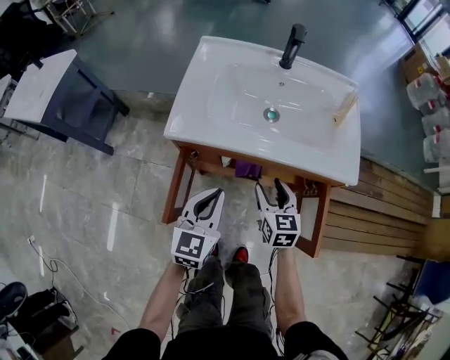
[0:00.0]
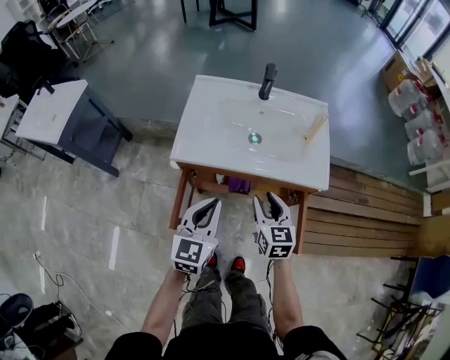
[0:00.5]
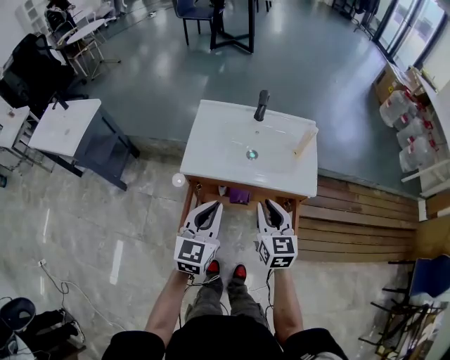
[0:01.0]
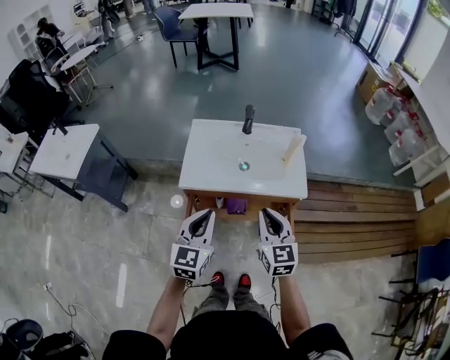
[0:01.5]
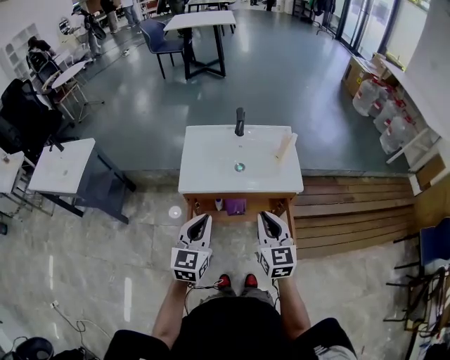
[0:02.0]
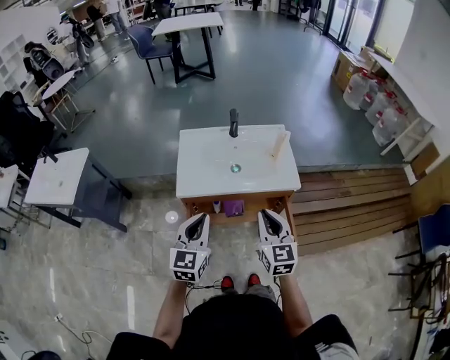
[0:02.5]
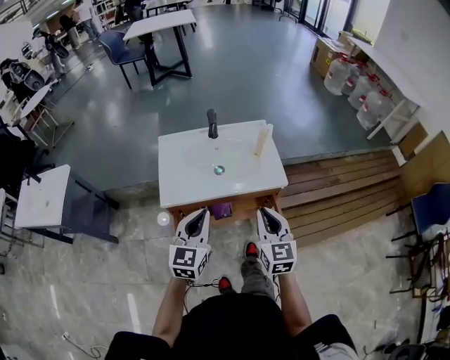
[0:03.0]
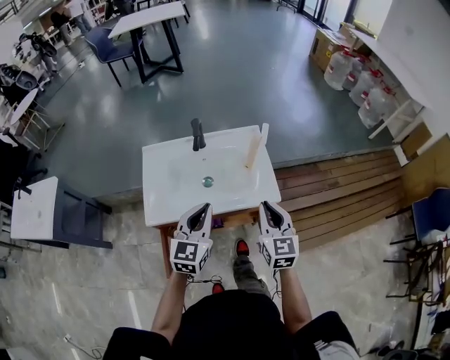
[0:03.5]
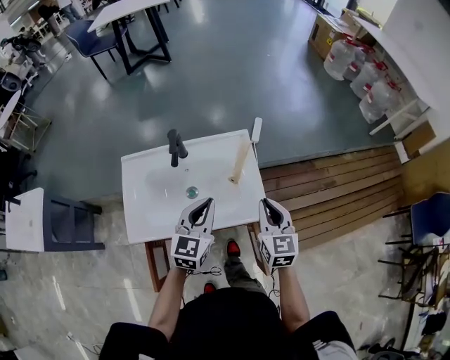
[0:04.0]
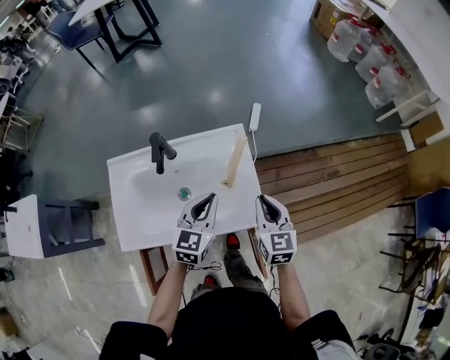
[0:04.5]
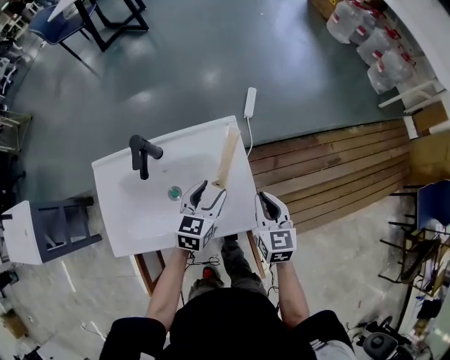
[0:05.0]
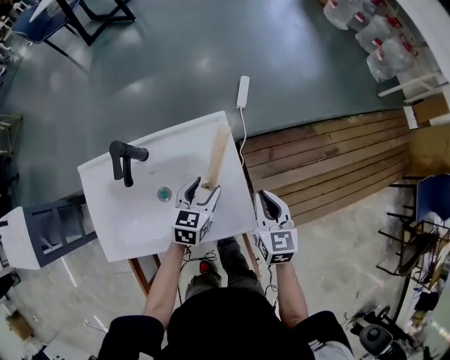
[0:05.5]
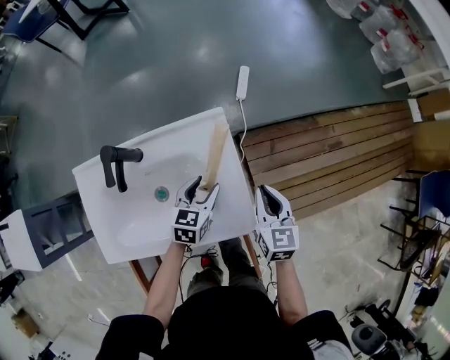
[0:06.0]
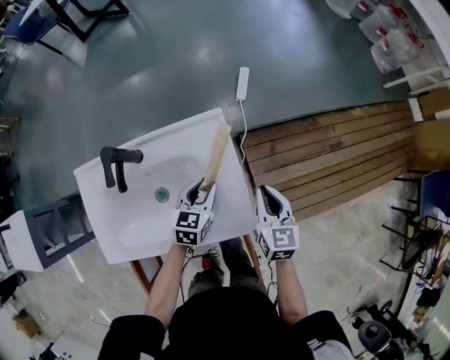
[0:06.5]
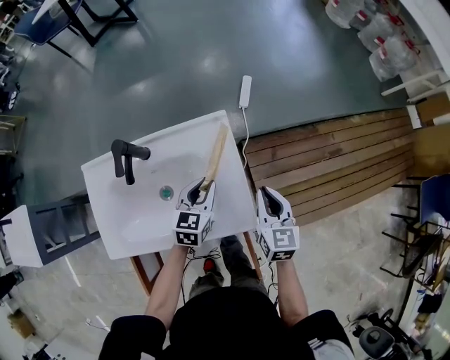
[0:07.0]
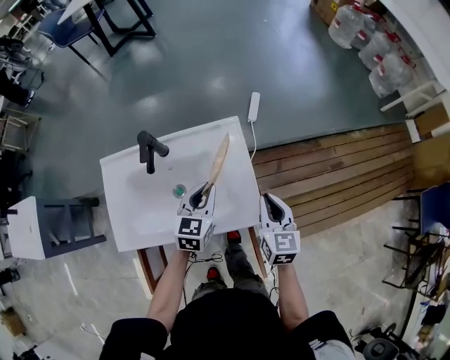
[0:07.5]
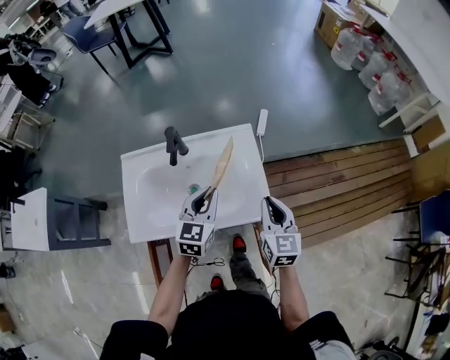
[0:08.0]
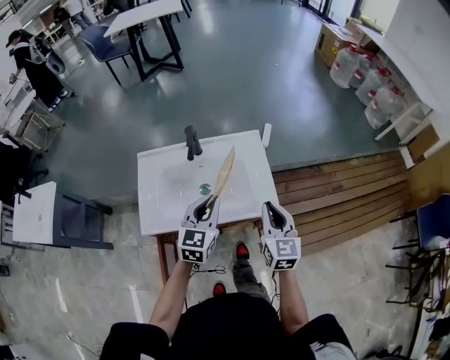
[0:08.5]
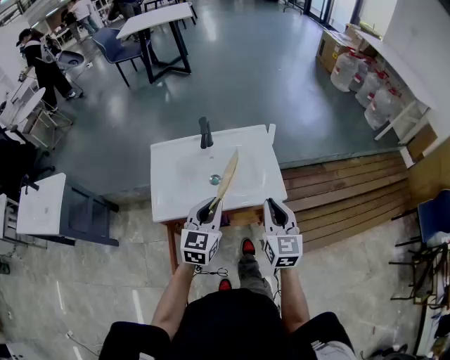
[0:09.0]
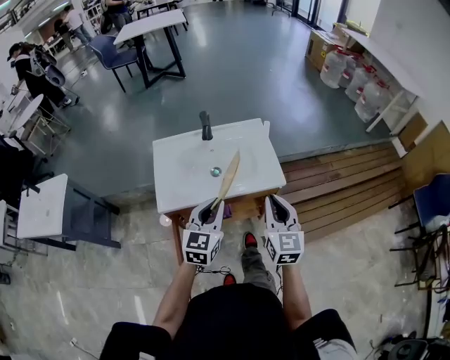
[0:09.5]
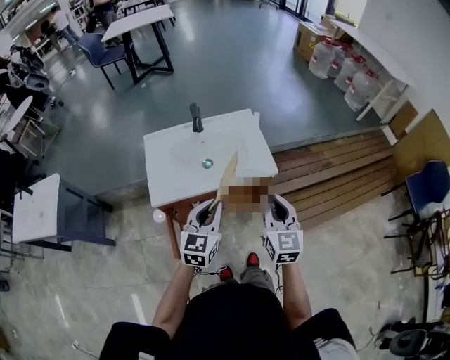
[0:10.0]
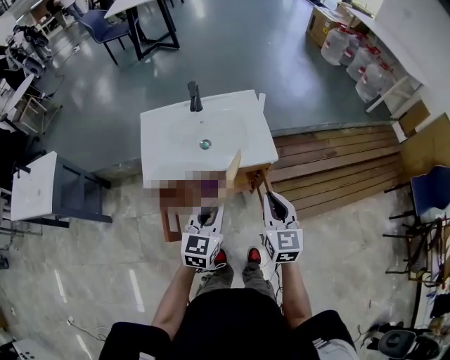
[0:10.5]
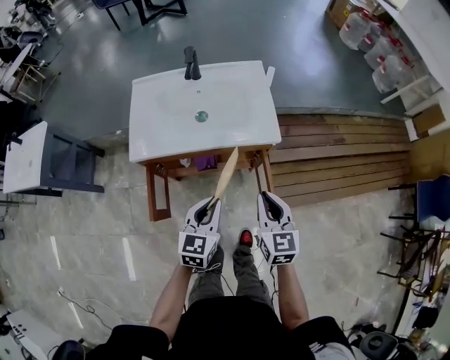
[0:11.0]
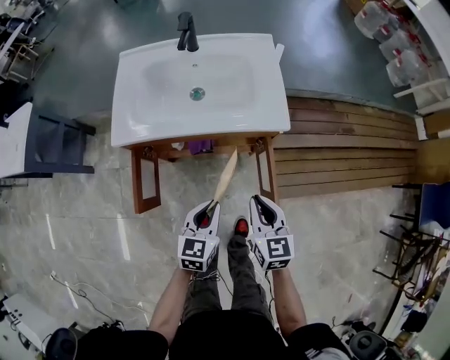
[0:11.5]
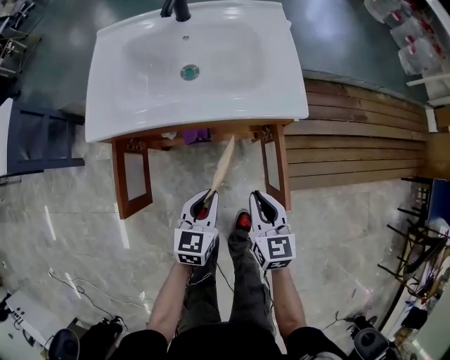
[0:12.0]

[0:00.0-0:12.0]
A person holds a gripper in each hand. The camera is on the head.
0:00.0 to 0:02.0: The left gripper moves upward, approximately 25 cm. The right gripper moves upward and backward, approximately 35 cm, and closes up.
0:02.0 to 0:04.0: Both grippers move forward and to the right, approximately 35 cm.
0:04.0 to 0:06.0: Both grippers move downward and forward, approximately 25 cm. The left gripper swivels approximately 30 degrees, and opens up.
0:06.0 to 0:08.0: Both grippers travel together upward and backward, approximately 20 cm. The left gripper changes its angle by some 20 degrees, and closes its fingers.
0:08.0 to 0:10.0: The right gripper shifts some 25 cm backward and upward. Meanwhile the left gripper moves backward, about 25 cm.
0:10.0 to 0:12.0: The grippers both shift downward by some 30 cm. The right gripper turns by some 30 degrees; the left gripper swivels roughly 20 degrees.

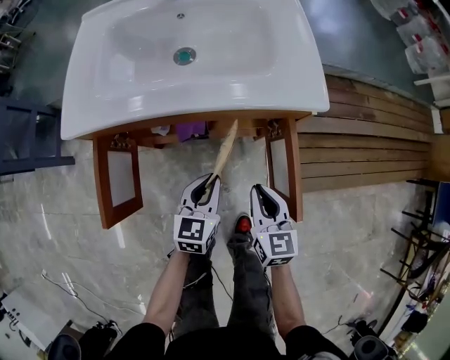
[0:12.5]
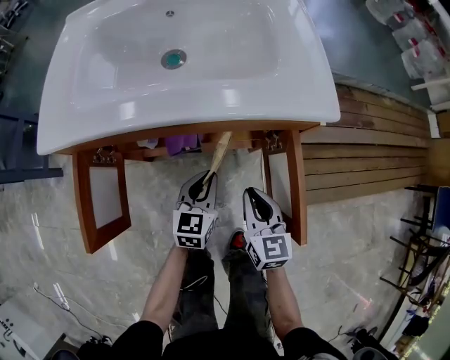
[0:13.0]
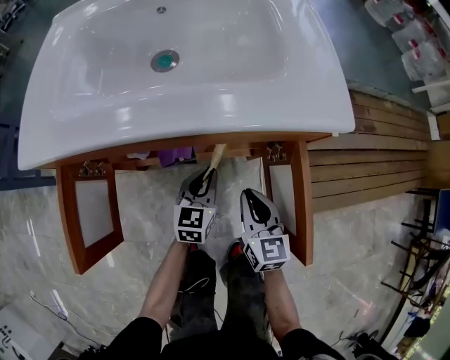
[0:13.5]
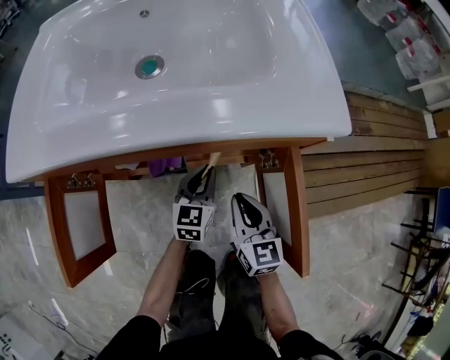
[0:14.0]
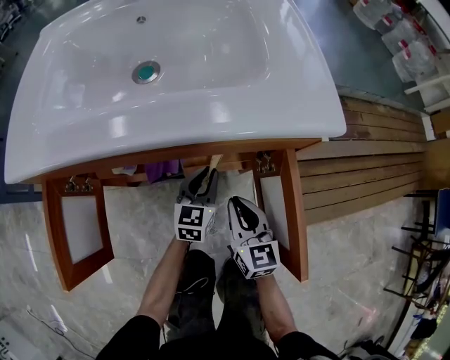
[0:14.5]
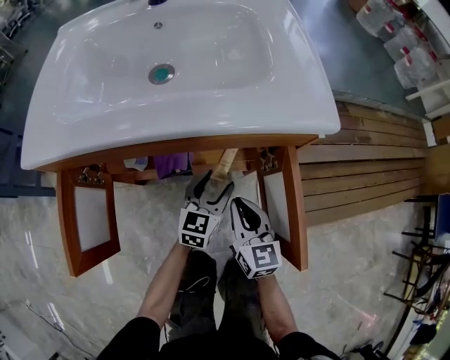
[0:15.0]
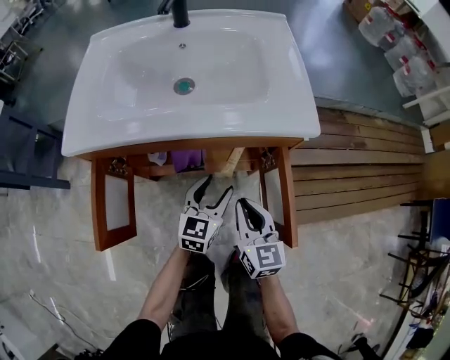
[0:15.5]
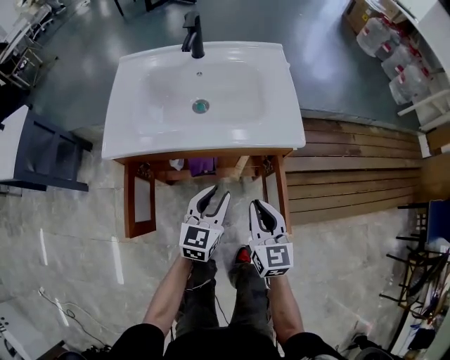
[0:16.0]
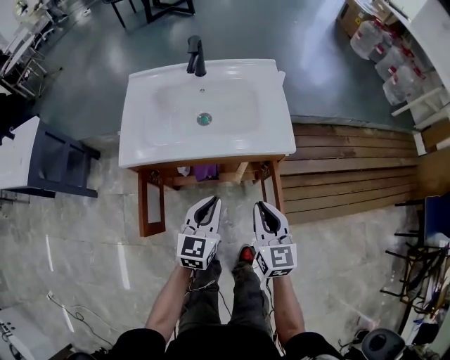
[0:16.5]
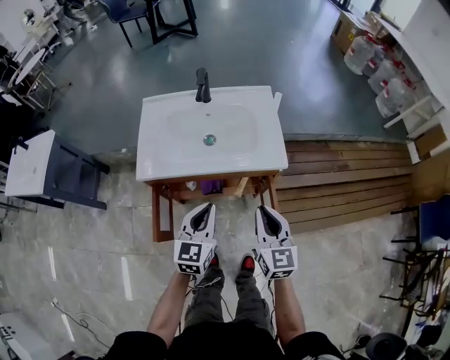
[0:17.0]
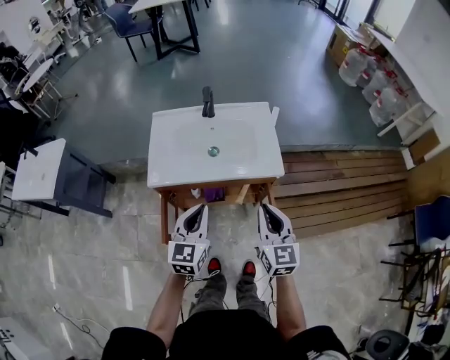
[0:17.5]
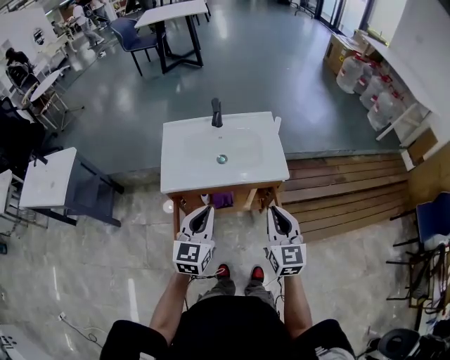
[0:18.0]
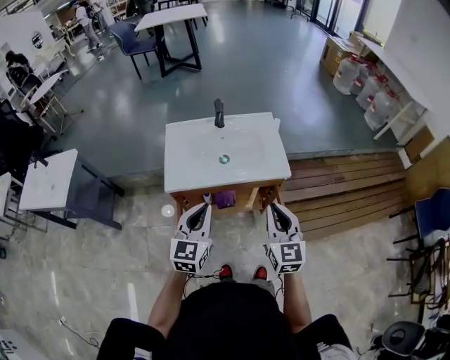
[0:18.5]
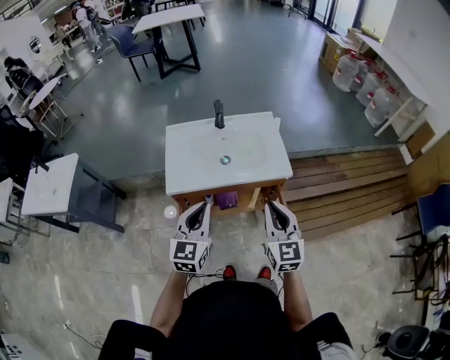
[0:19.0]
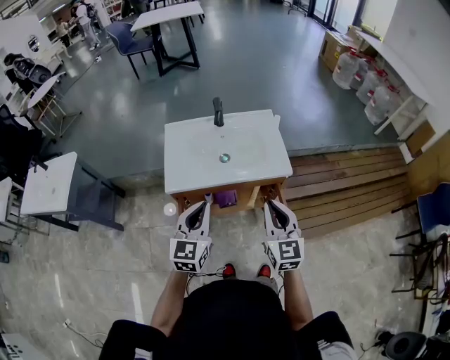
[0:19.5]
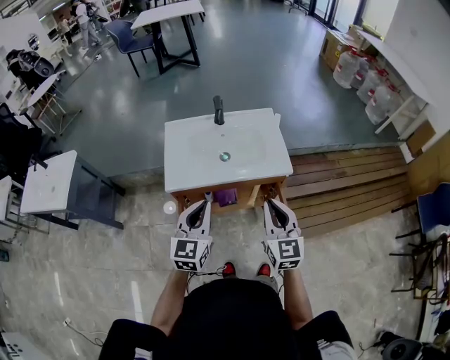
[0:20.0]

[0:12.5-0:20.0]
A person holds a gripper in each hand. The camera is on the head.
0:12.5 to 0:14.5: The grippers both shift downward and forward by about 20 cm.
0:14.5 to 0:16.5: The grippers both shift upward by some 35 cm. The left gripper opens, then closes again.
0:16.5 to 0:18.0: Both grippers move upward, about 20 cm.
0:18.0 to 0:20.0: The grippers stay close to where they were, moving slightly.

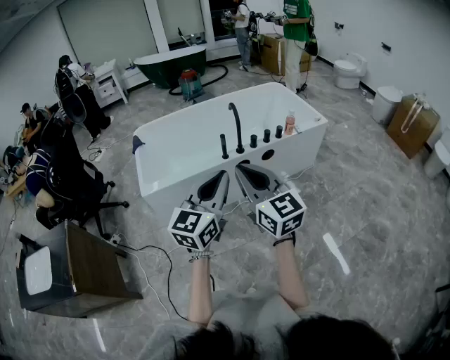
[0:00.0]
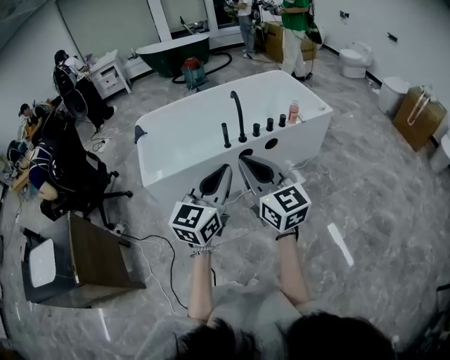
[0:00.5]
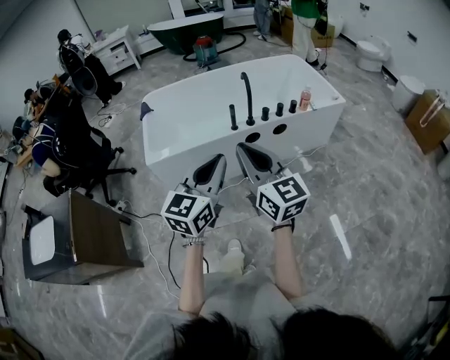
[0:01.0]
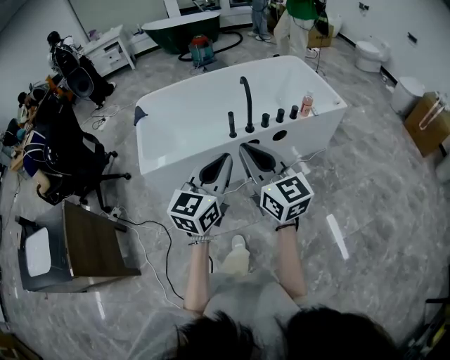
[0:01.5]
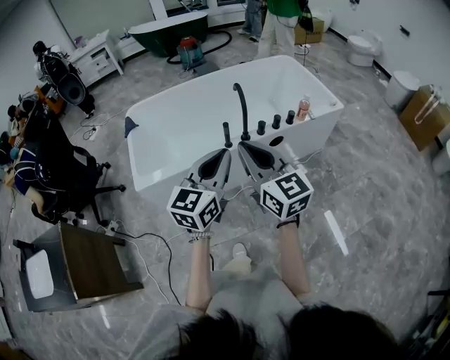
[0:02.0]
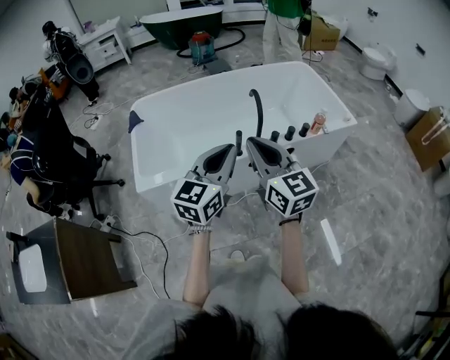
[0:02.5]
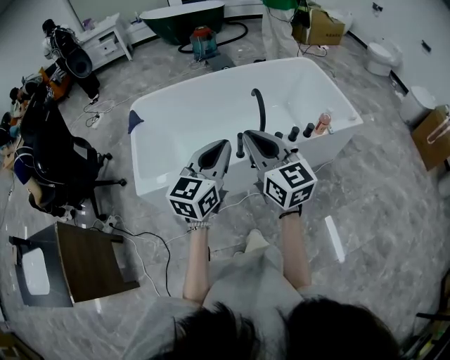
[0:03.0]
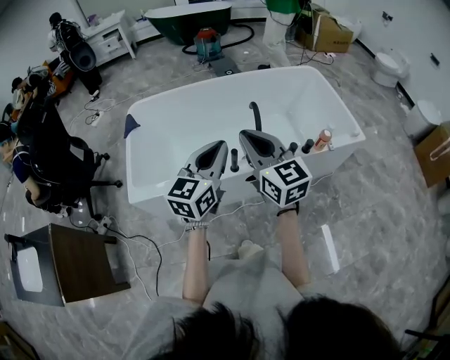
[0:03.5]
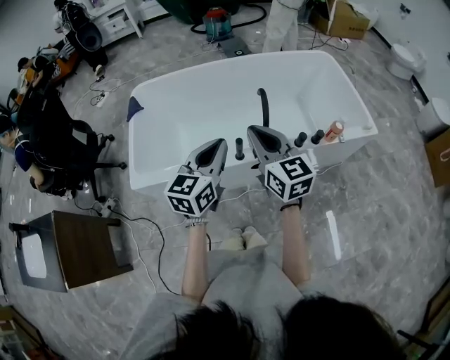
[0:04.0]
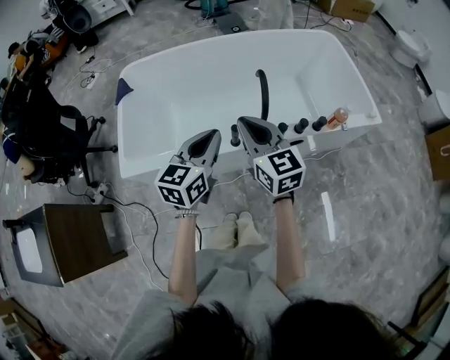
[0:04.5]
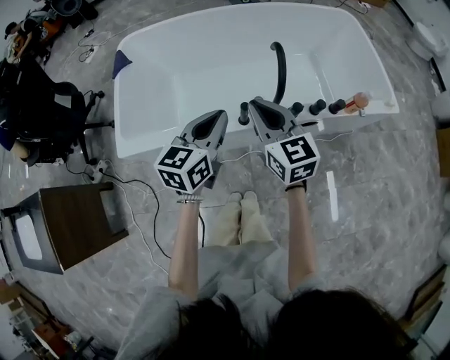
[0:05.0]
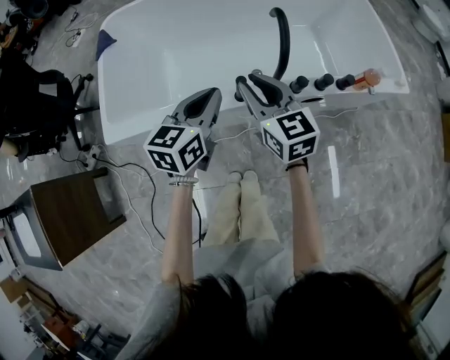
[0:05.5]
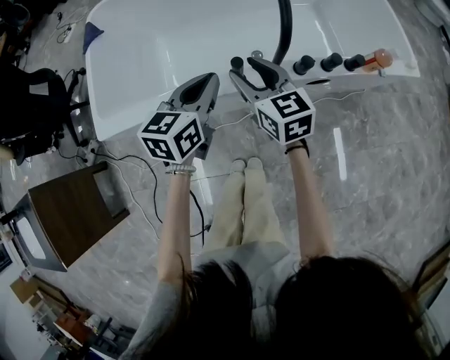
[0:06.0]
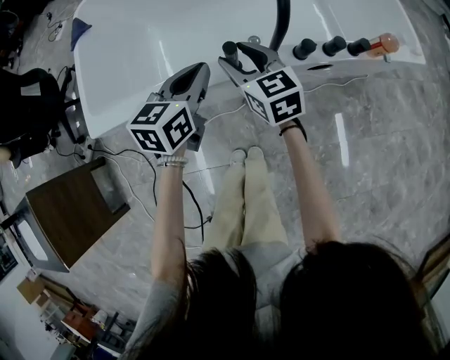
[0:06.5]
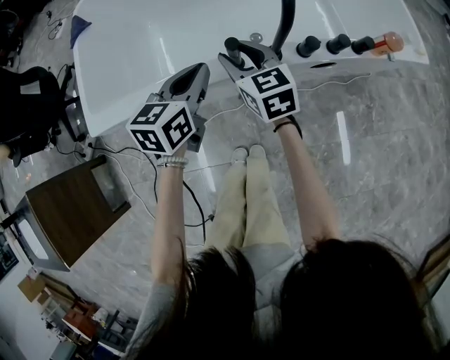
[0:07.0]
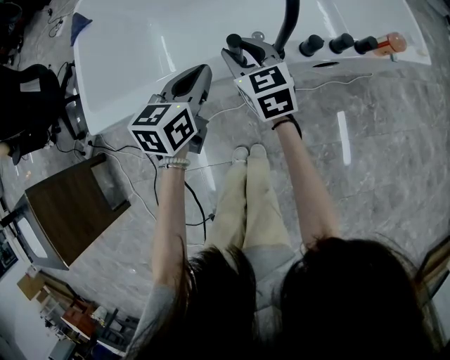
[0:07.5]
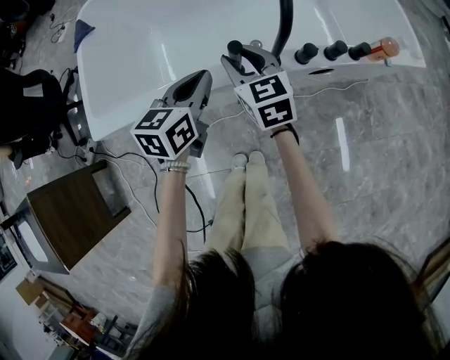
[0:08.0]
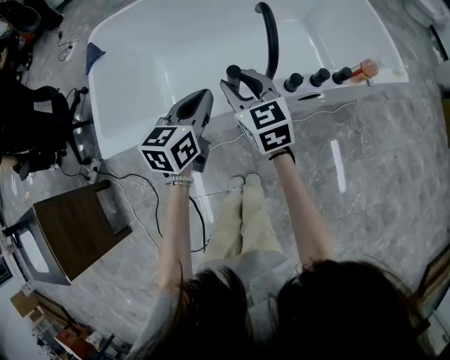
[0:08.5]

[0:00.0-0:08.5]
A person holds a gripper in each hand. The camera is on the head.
0:00.0 to 0:02.0: The two grippers go approximately 20 cm forward.
0:02.0 to 0:04.0: Both grippers move forward, roughly 25 cm.
0:04.0 to 0:06.5: The grippers both shift downward by approximately 30 cm. The right gripper opens up.
0:06.5 to 0:08.5: The grippers both shift upward by some 5 cm.
